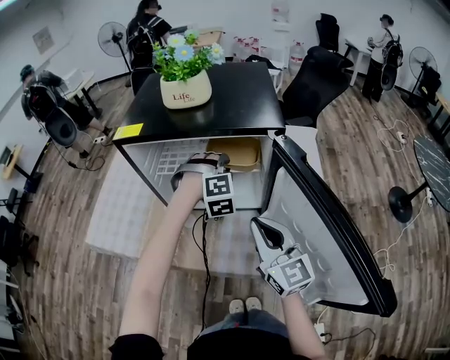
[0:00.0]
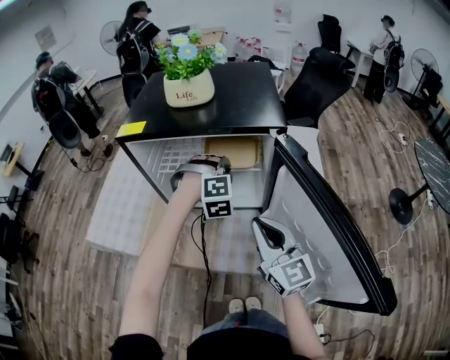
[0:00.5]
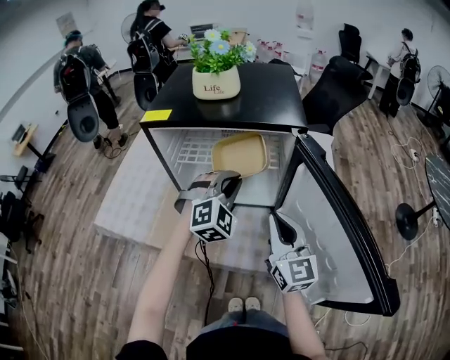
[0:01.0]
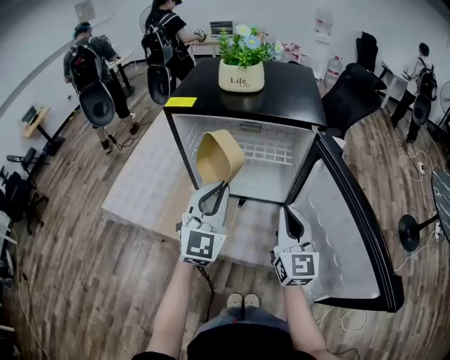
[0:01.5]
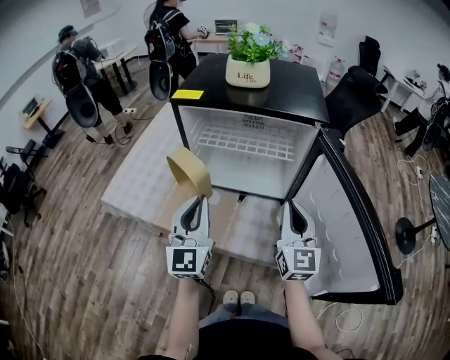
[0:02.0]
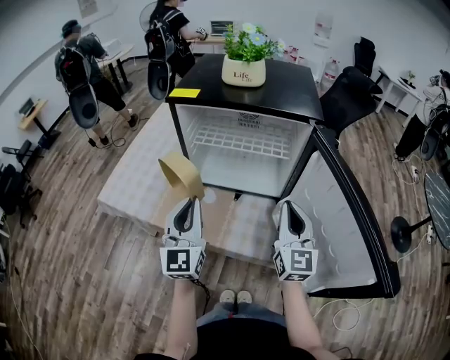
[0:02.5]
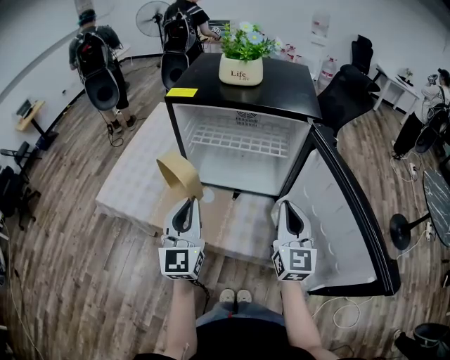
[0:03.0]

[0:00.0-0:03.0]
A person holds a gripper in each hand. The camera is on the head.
0:00.0 to 0:01.5: The left gripper heads backward, to the left and upward, covering roughly 20 cm, and tilts its fingers approximately 40 degrees upward.
0:01.5 to 0:03.0: The left gripper travels to the left and backward by roughly 10 cm, and rotates roughly 20 degrees.

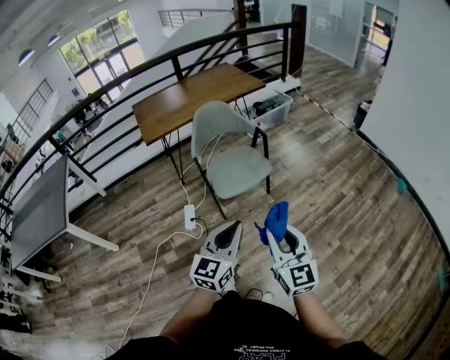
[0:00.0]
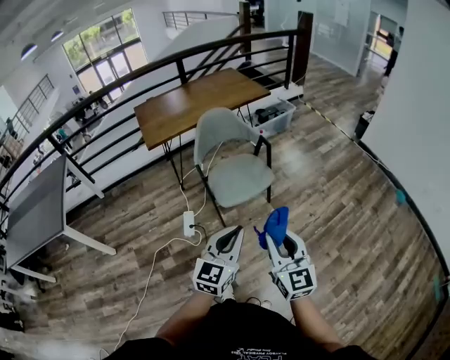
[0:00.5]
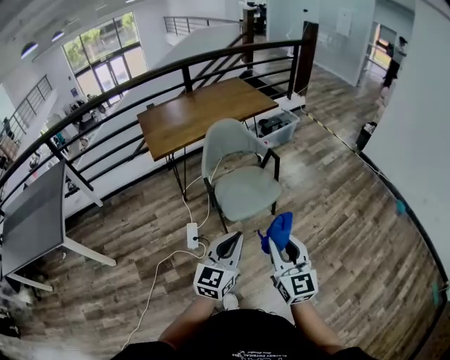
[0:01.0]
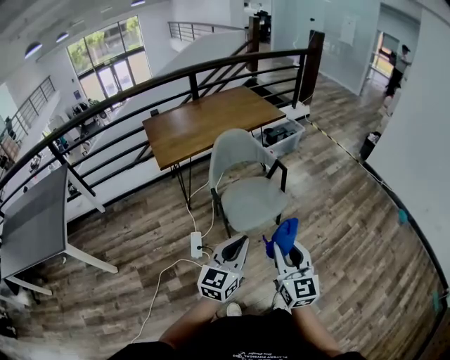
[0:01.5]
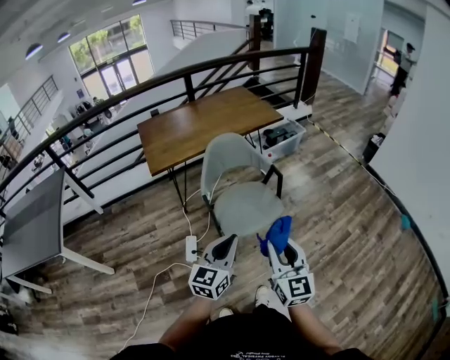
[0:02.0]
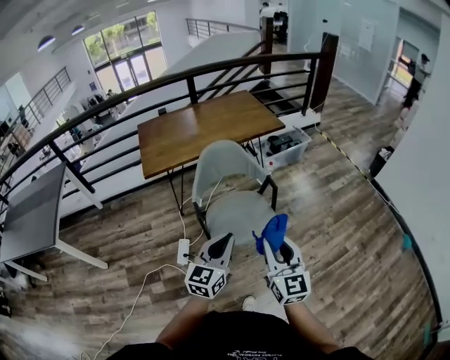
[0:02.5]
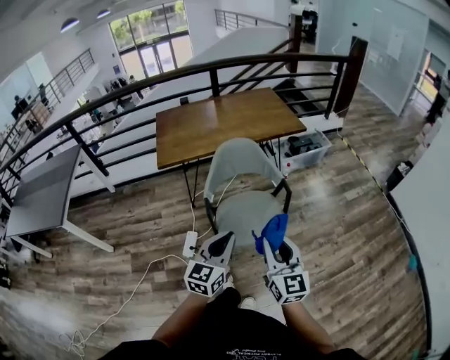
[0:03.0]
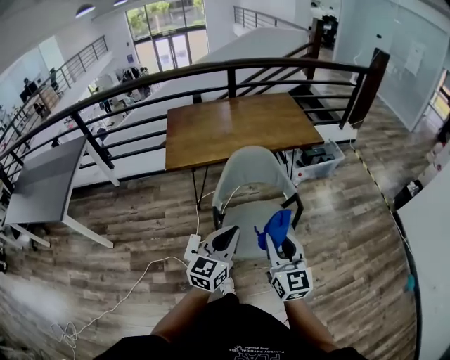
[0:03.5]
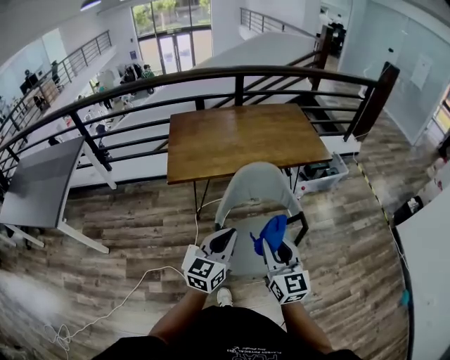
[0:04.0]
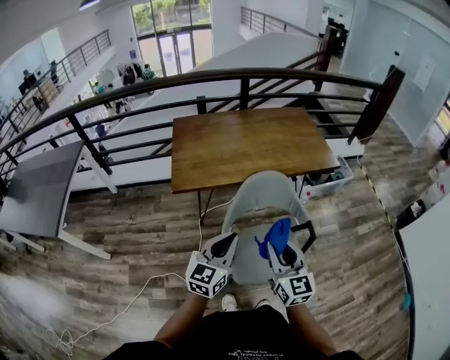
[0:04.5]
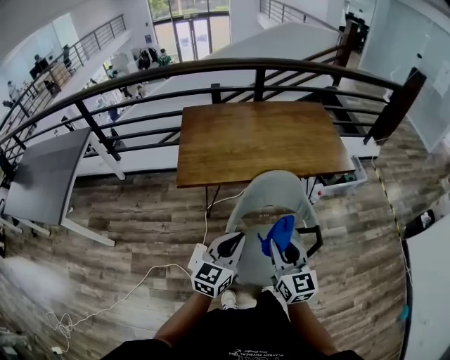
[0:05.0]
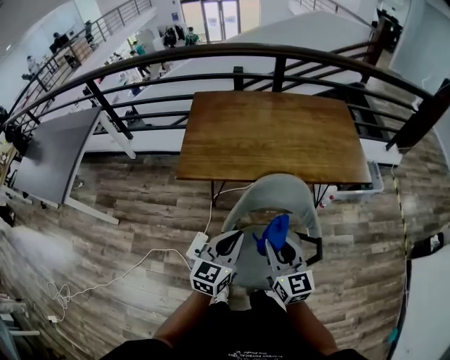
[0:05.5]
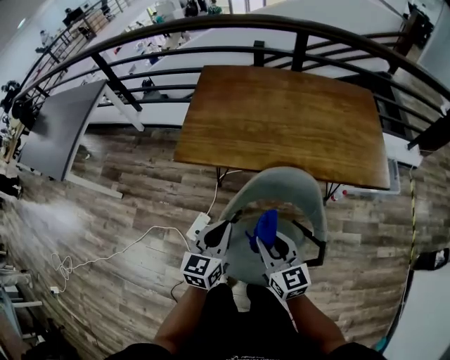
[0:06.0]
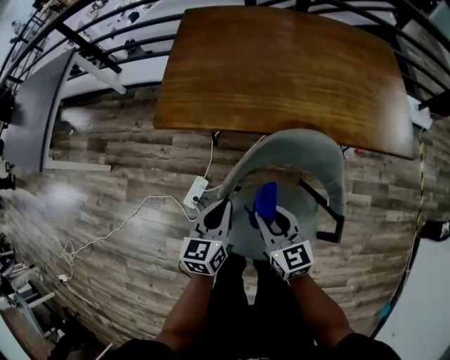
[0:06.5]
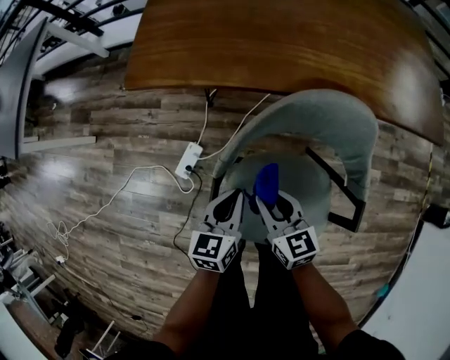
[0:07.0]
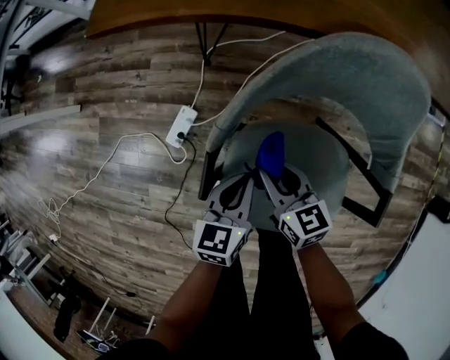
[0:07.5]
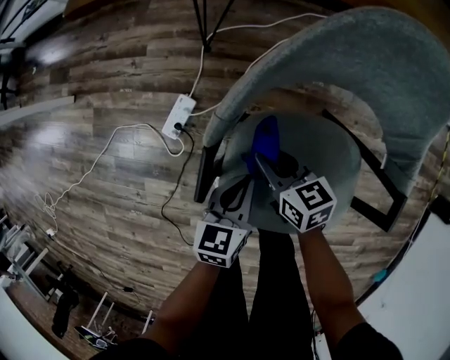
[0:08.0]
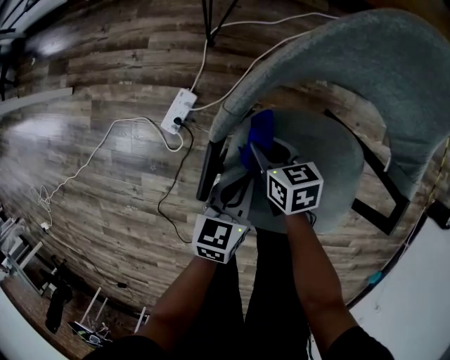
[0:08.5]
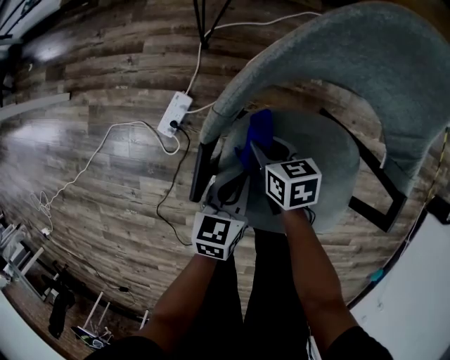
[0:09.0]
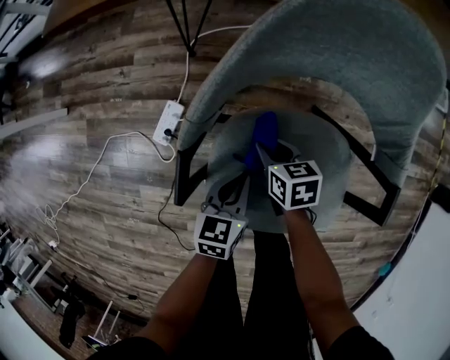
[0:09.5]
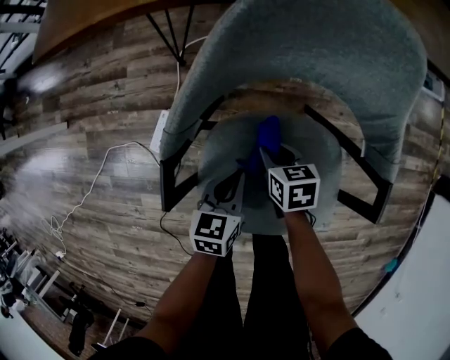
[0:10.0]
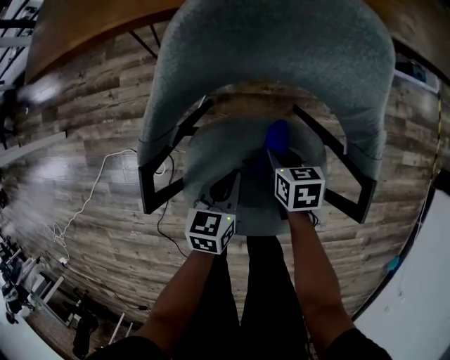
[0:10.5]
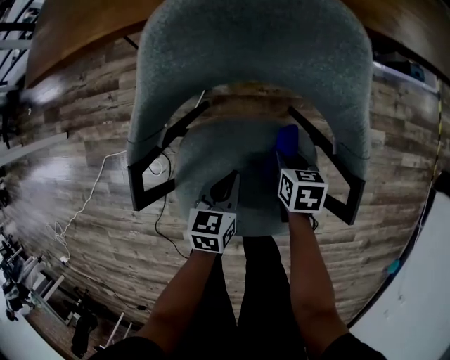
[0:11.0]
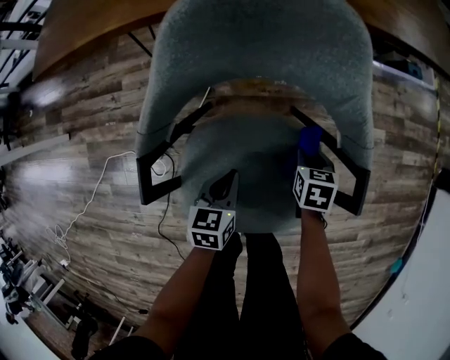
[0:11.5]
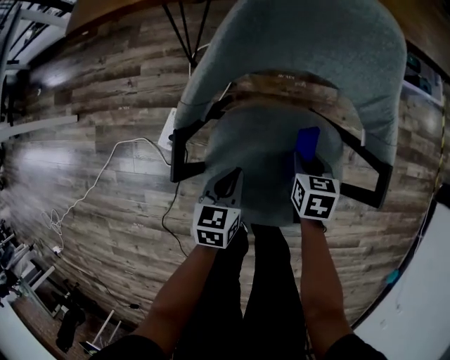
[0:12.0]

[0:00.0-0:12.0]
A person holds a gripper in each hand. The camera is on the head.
0:00.0 to 0:02.0: The grippers both shift forward and to the left by roughly 20 cm.
0:02.0 to 0:04.0: The grippers both shift forward by some 25 cm. The right gripper changes its angle by roughly 20 degrees.
0:04.0 to 0:06.0: The left gripper shifts by approximately 20 cm, and rotates some 30 degrees. Meanwhile the right gripper ends up approximately 25 cm from where it was, and rotates some 30 degrees.
0:06.0 to 0:08.0: Both grippers travel together downward, some 40 cm. The right gripper turns by about 30 degrees, while the left gripper changes its angle by roughly 20 degrees.
0:08.0 to 0:10.0: The left gripper heads to the right, covering some 5 cm. Meanwhile the right gripper goes approximately 10 cm to the right and downward, and changes its angle by roughly 20 degrees.
0:10.0 to 0:12.0: The right gripper goes about 10 cm to the right. The left gripper goes to the right and returns, roughly 5 cm each way.

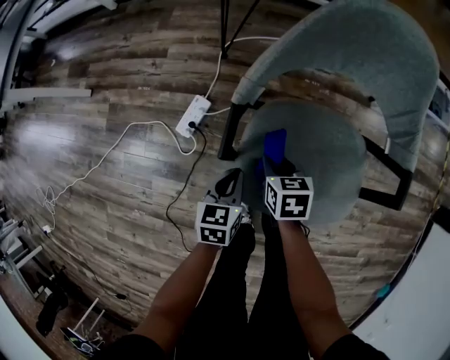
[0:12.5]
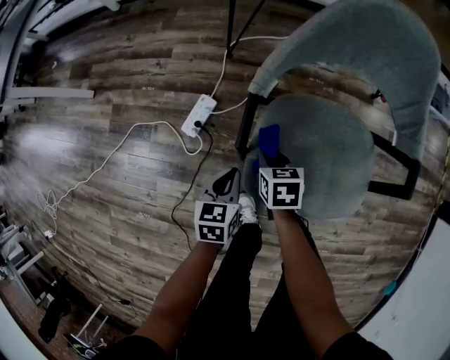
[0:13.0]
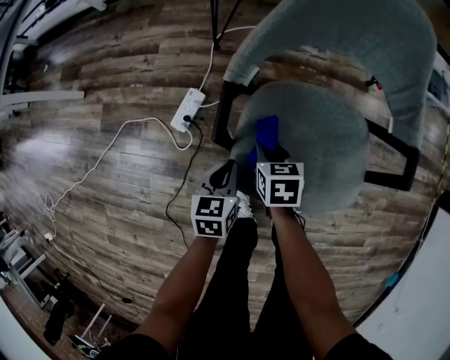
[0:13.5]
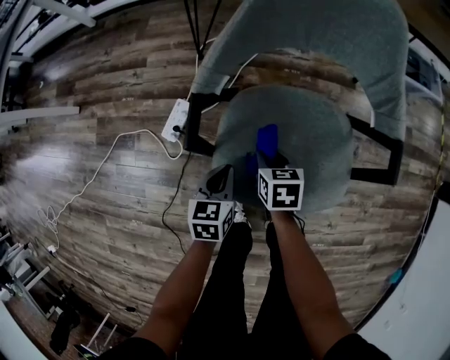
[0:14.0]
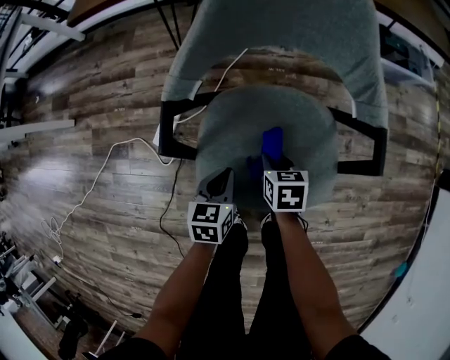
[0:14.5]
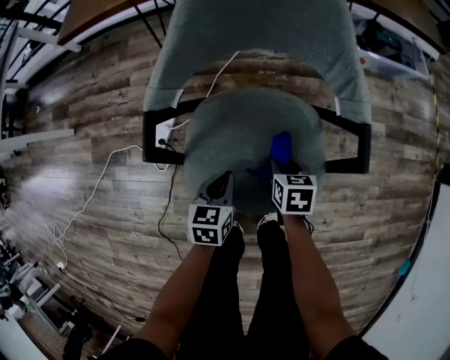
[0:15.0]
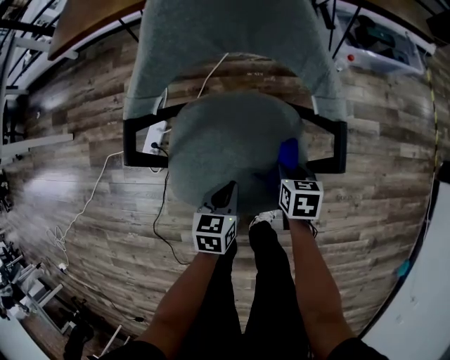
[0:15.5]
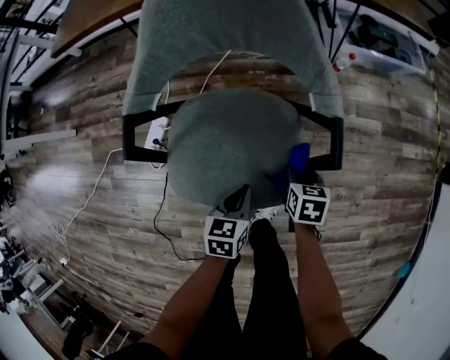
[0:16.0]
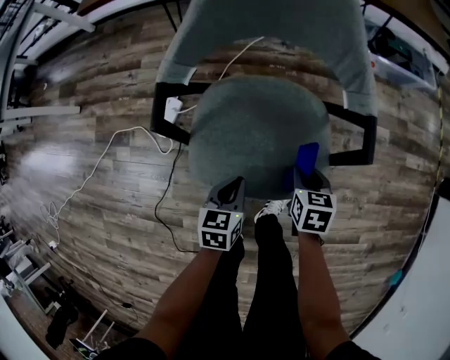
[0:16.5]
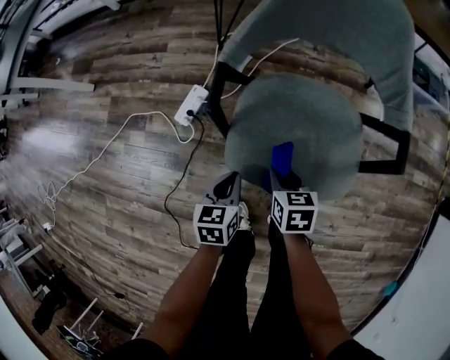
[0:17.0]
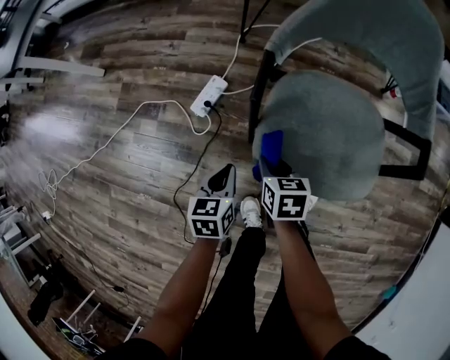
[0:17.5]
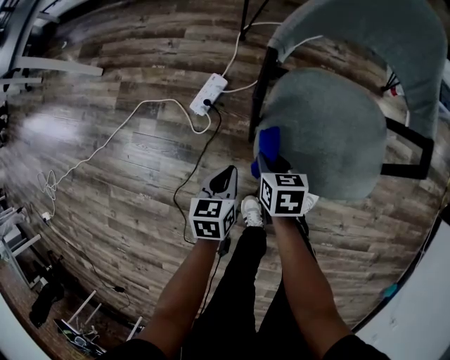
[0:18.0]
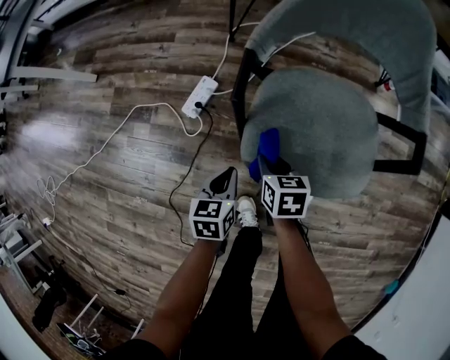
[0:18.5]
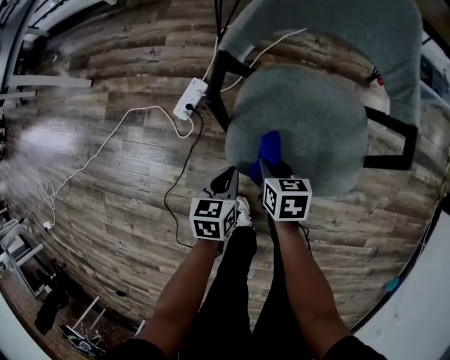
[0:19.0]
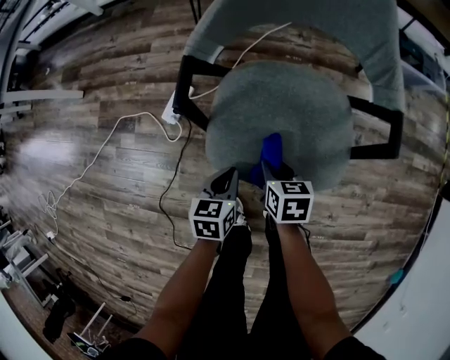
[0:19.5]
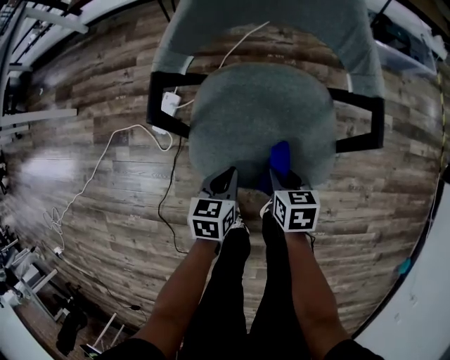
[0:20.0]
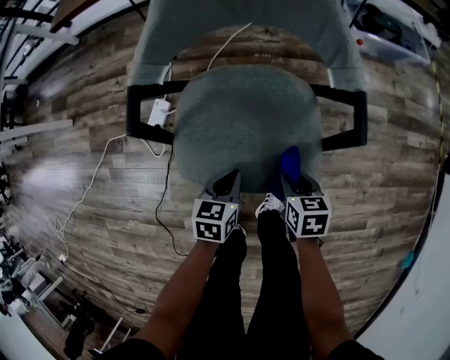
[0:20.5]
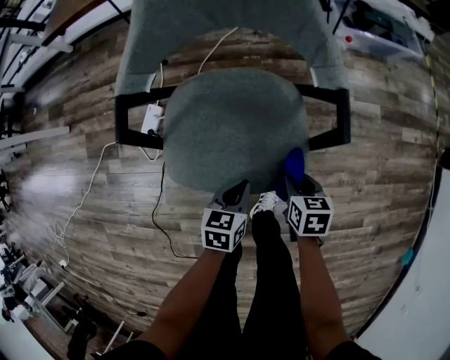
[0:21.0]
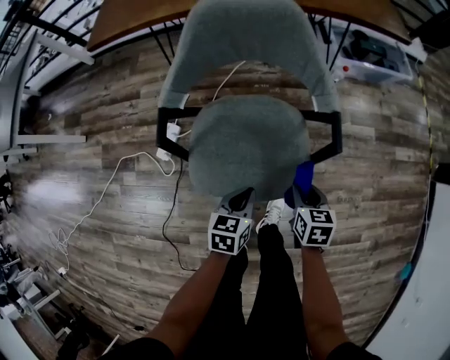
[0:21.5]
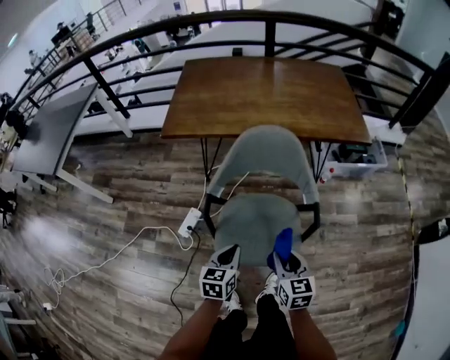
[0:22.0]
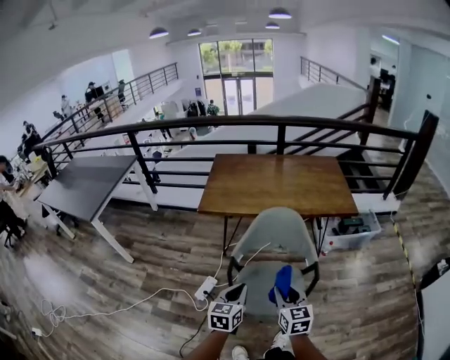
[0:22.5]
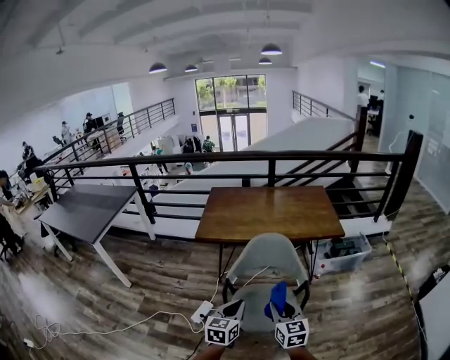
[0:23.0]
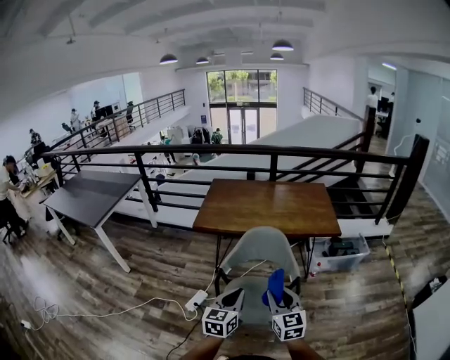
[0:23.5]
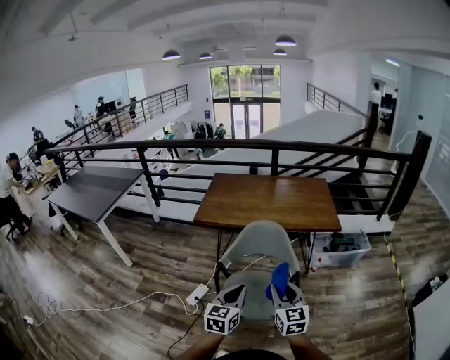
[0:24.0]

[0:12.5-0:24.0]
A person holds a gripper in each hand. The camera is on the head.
0:12.5 to 0:14.5: The grippers both shift to the right by about 10 cm.
0:14.5 to 0:16.5: Both grippers move to the right and backward, some 10 cm.
0:16.5 to 0:18.5: The two grippers go some 25 cm to the left.
0:18.5 to 0:20.0: The two grippers go roughly 15 cm to the right.
0:20.0 to 0:22.0: The two grippers go approximately 30 cm upward. The right gripper swivels some 30 degrees.
0:22.0 to 0:24.0: The left gripper moves upward and backward, about 30 cm, and swivels roughly 30 degrees. The right gripper moves upward, roughly 25 cm, and turns by about 30 degrees.
